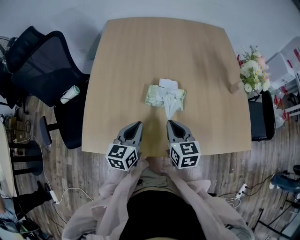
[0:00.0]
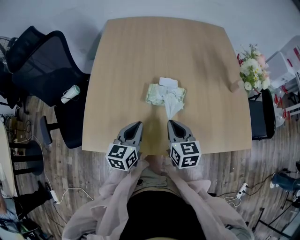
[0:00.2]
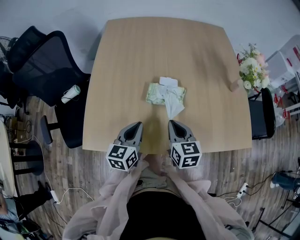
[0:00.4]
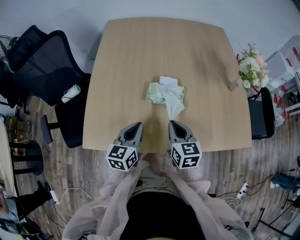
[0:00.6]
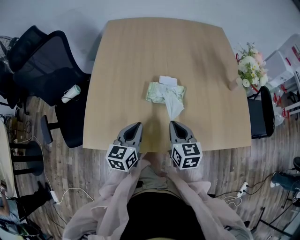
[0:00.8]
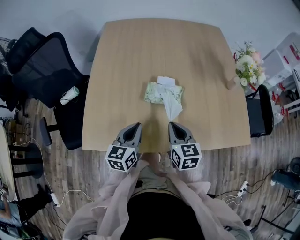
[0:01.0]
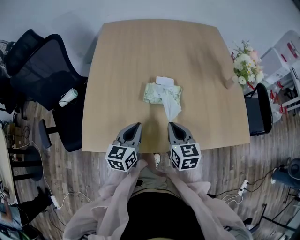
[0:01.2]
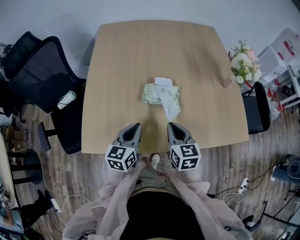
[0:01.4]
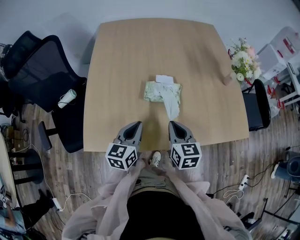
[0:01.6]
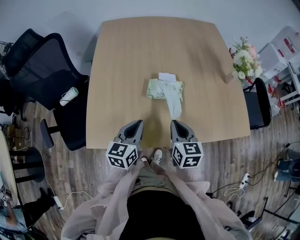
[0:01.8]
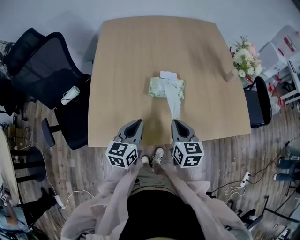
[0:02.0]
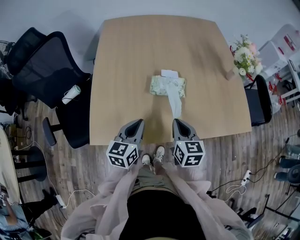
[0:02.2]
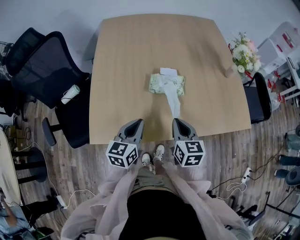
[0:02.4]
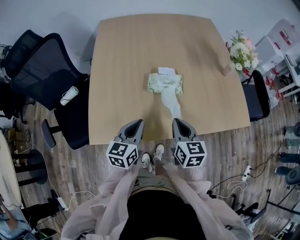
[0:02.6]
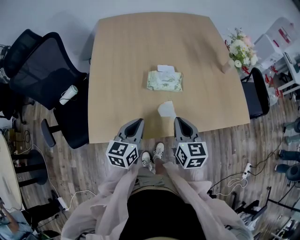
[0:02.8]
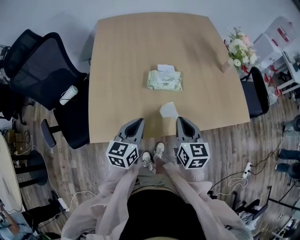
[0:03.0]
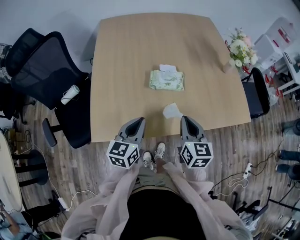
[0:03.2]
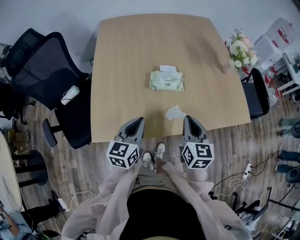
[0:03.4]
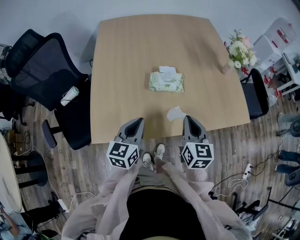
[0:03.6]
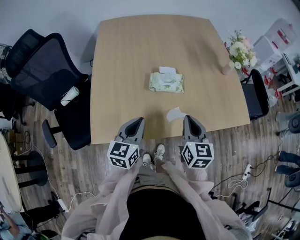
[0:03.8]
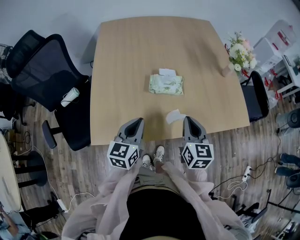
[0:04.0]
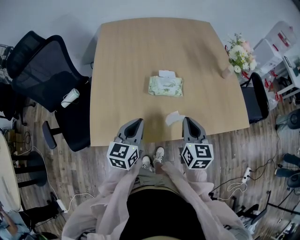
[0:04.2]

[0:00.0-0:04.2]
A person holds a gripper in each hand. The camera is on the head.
0:00.0 to 0:01.4: The grippers make only small movements.
0:01.4 to 0:02.8: The grippers both shift backward by approximately 5 cm.
0:02.8 to 0:04.2: There are only small adjustments of the grippers.

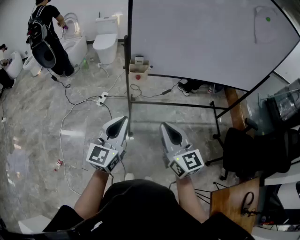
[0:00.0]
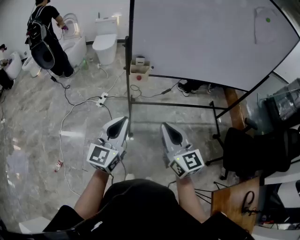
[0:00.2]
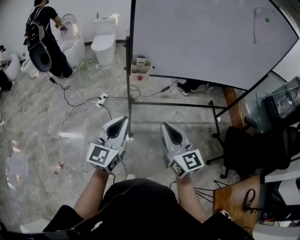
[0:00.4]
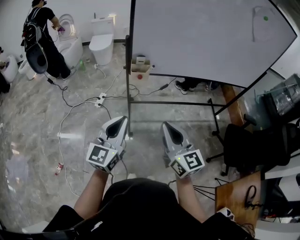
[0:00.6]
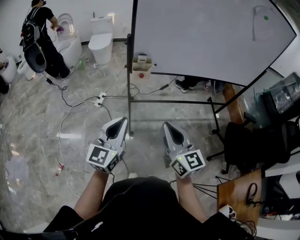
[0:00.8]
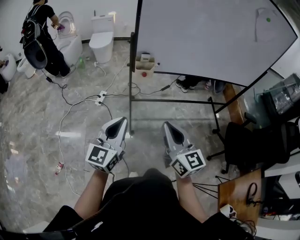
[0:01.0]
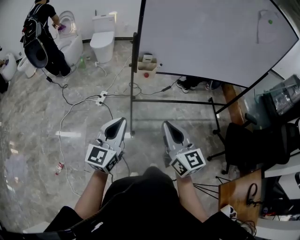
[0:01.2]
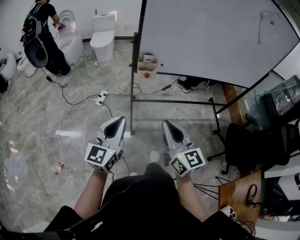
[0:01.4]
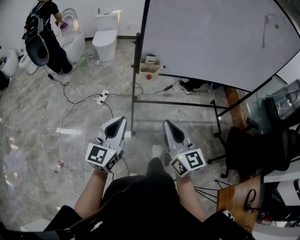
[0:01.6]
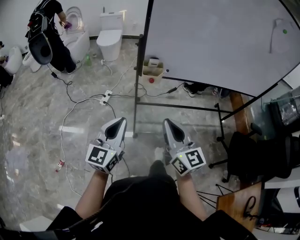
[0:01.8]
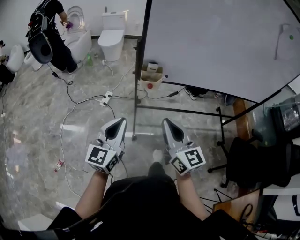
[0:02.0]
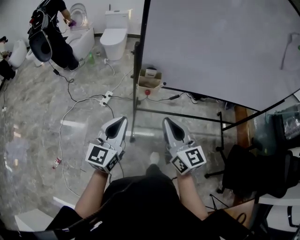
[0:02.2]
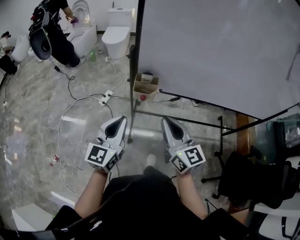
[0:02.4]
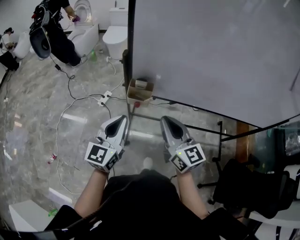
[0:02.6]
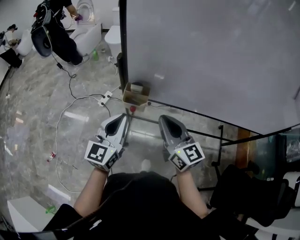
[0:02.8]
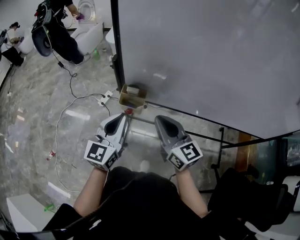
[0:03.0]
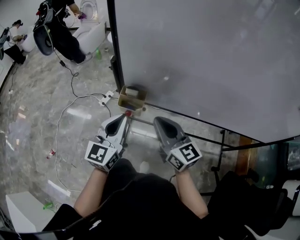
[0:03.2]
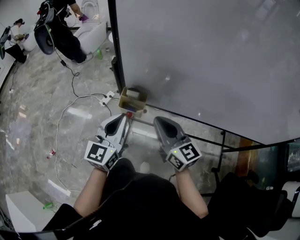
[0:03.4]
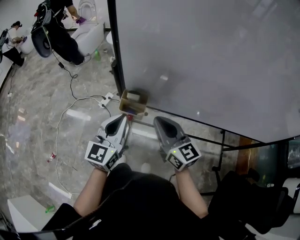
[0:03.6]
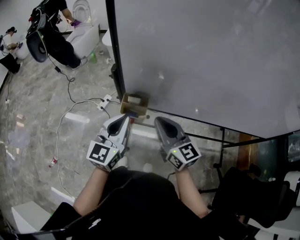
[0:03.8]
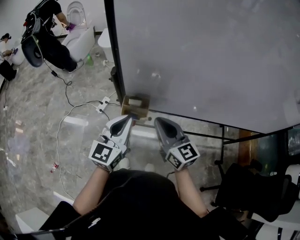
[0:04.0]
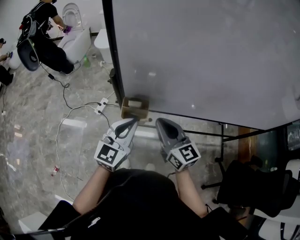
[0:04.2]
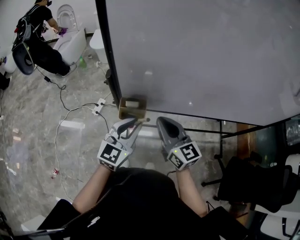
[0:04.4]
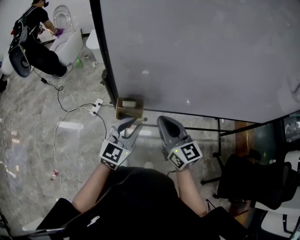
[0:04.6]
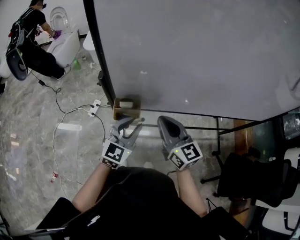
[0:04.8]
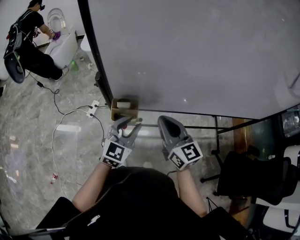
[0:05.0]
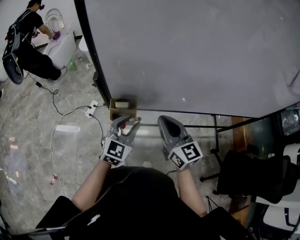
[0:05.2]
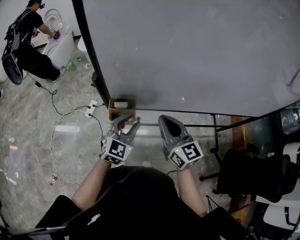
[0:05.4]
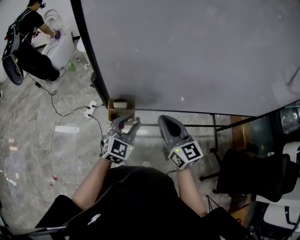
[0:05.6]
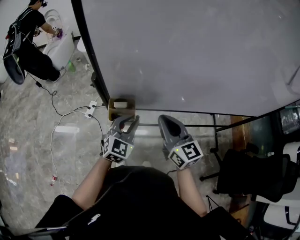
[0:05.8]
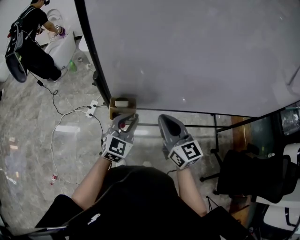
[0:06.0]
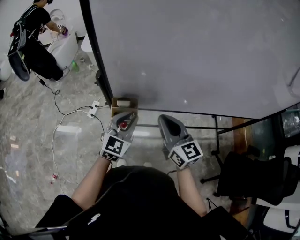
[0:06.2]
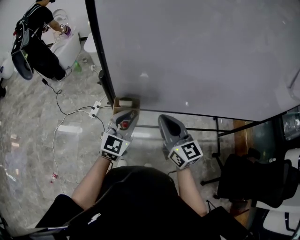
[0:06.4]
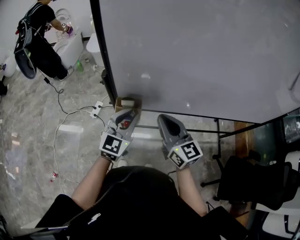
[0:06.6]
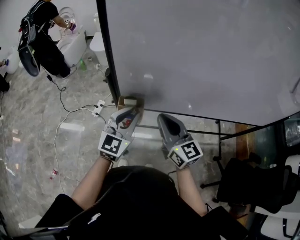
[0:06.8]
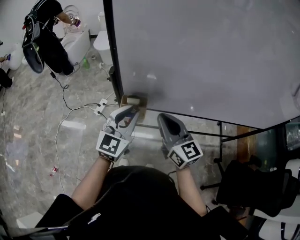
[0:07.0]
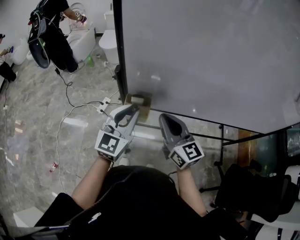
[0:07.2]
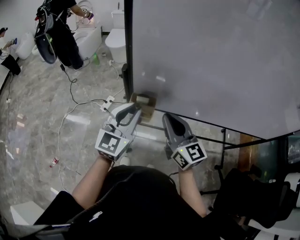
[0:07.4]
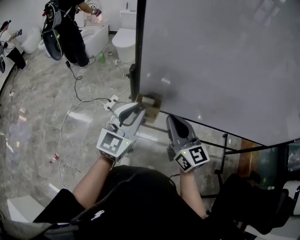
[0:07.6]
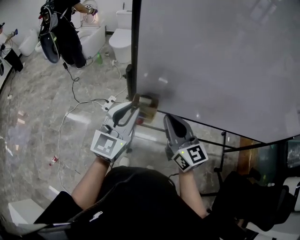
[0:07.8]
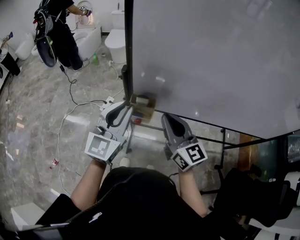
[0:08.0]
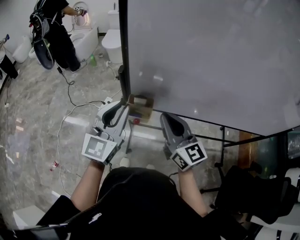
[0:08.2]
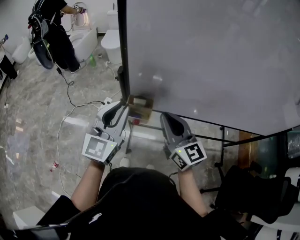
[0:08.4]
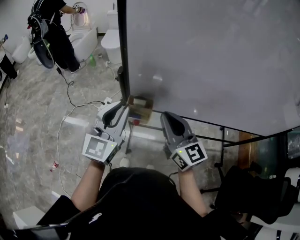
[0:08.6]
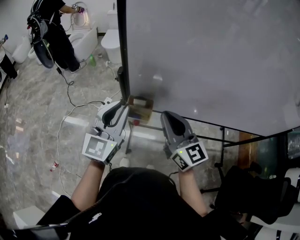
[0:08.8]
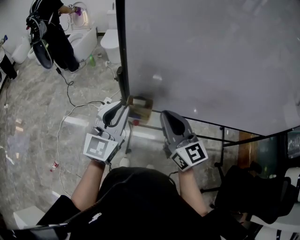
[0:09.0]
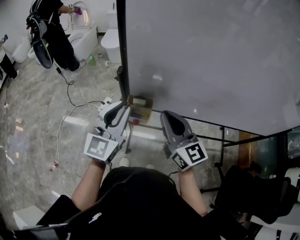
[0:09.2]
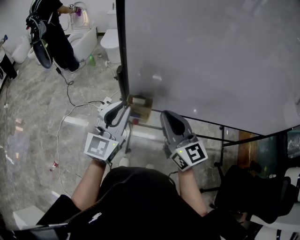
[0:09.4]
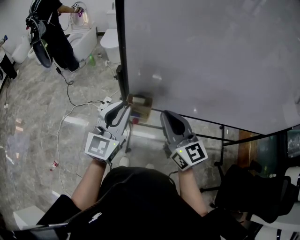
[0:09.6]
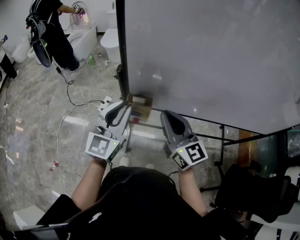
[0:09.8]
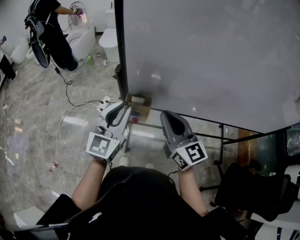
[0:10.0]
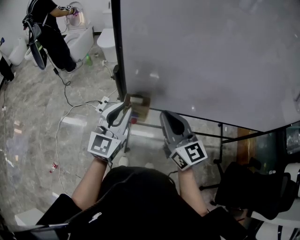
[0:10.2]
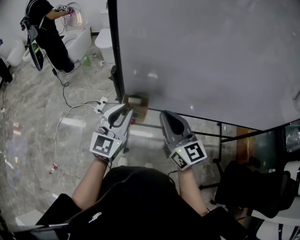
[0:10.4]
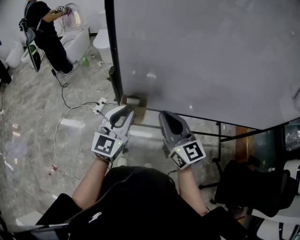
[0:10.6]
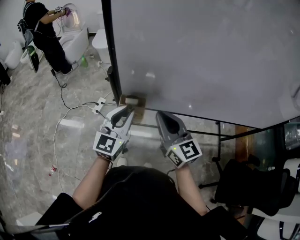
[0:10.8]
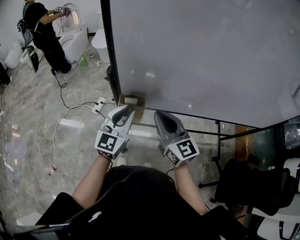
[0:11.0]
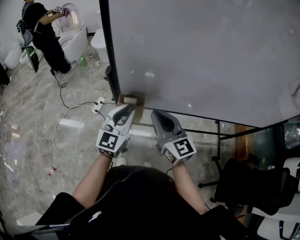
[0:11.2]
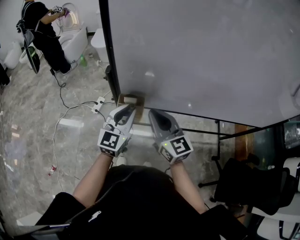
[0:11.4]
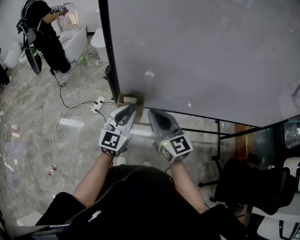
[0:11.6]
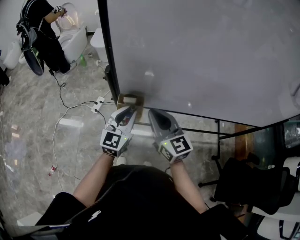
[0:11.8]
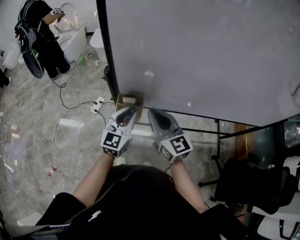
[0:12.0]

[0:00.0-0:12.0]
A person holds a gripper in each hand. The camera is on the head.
0:00.0 to 0:01.6: The two grippers go roughly 10 cm to the left.
0:01.6 to 0:03.0: The two grippers go roughly 30 cm forward and to the right. The right gripper swivels about 20 degrees.
0:03.0 to 0:04.4: The right gripper shifts by some 5 cm, while the left gripper changes place by approximately 5 cm, and swivels some 20 degrees.
0:04.4 to 0:06.0: The left gripper ends up some 5 cm from where it was.
0:06.0 to 0:07.6: The left gripper travels upward and to the left by approximately 15 cm, and rotates about 20 degrees. The right gripper travels to the left by some 5 cm.
0:07.6 to 0:10.4: There are only small adjustments of the grippers.
0:10.4 to 0:12.0: The left gripper heads downward, covering roughly 10 cm. The right gripper shifts by some 5 cm.

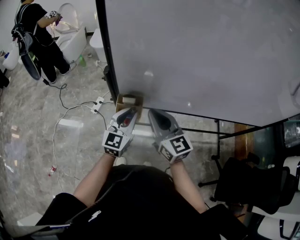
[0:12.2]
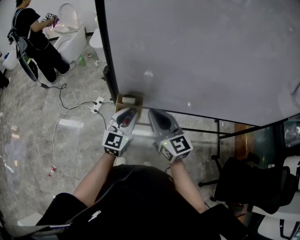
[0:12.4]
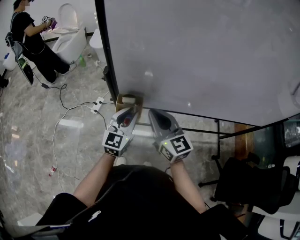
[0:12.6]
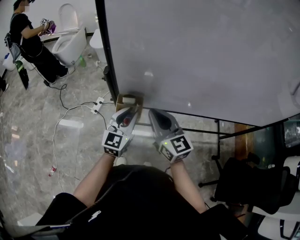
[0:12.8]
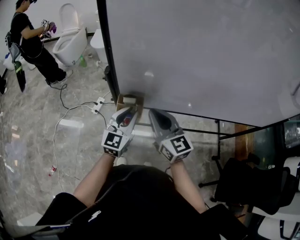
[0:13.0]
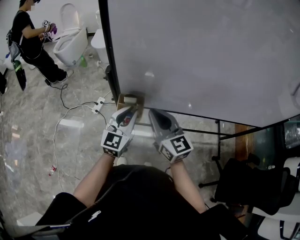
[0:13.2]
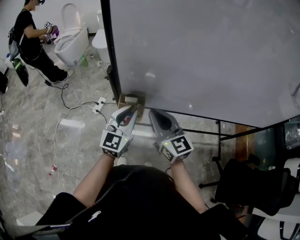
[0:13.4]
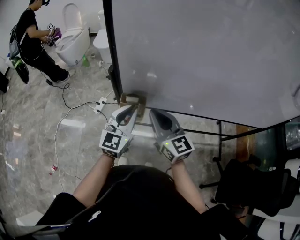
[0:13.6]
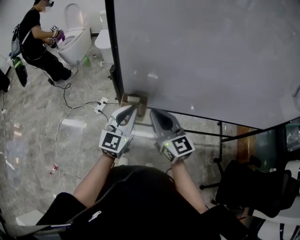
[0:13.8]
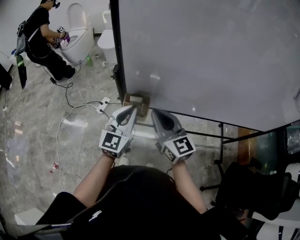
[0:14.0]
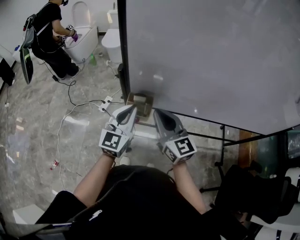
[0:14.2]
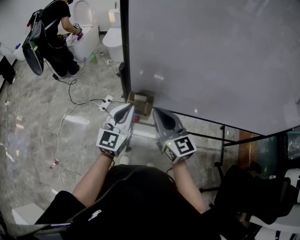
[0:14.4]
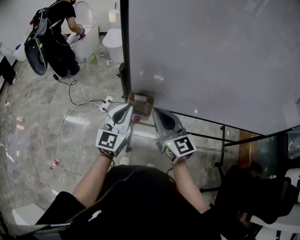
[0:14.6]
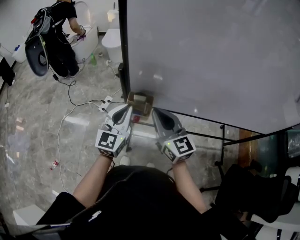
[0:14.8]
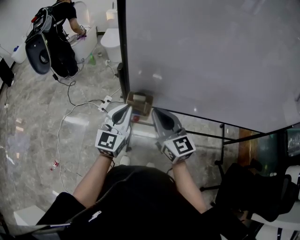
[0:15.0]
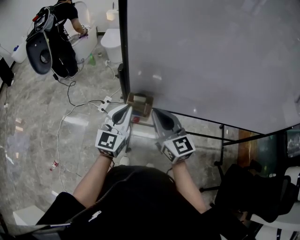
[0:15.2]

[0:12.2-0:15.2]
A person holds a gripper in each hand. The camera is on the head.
0:12.2 to 0:13.8: The left gripper goes approximately 5 cm upward.
0:13.8 to 0:15.2: The grippers make only small movements.

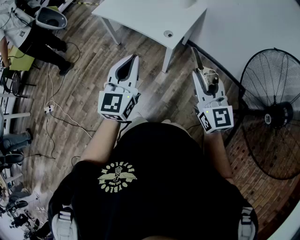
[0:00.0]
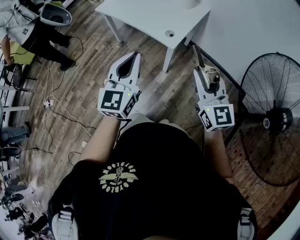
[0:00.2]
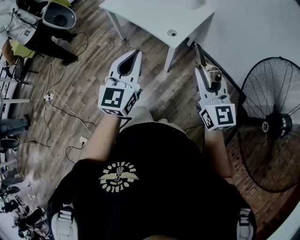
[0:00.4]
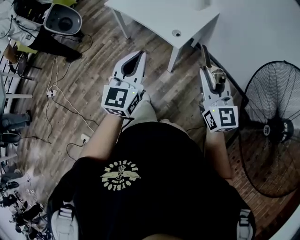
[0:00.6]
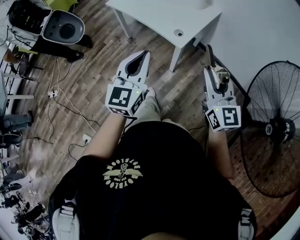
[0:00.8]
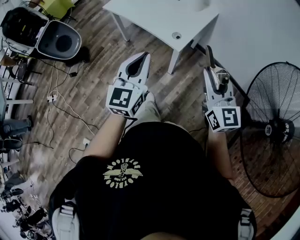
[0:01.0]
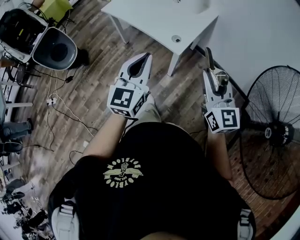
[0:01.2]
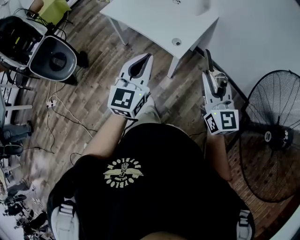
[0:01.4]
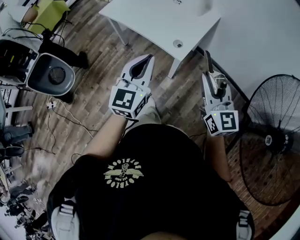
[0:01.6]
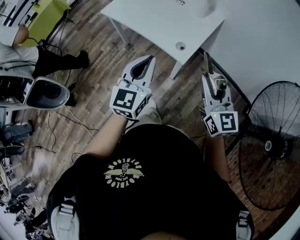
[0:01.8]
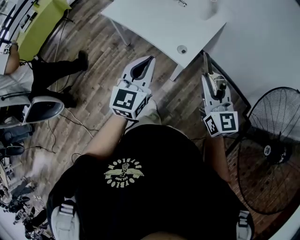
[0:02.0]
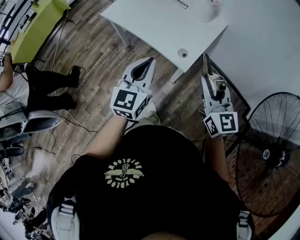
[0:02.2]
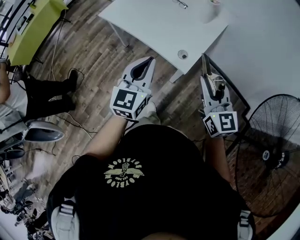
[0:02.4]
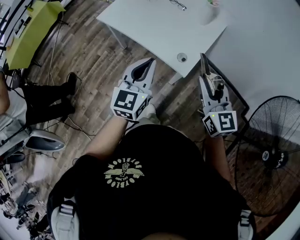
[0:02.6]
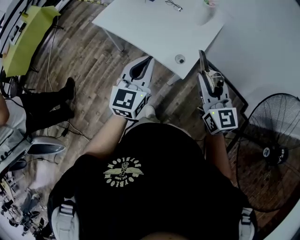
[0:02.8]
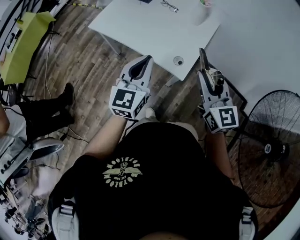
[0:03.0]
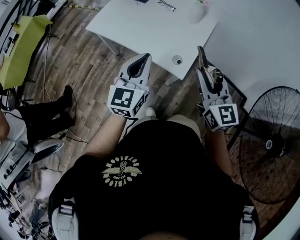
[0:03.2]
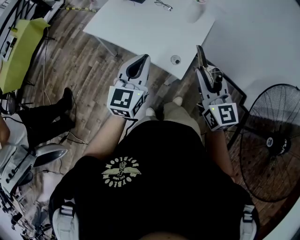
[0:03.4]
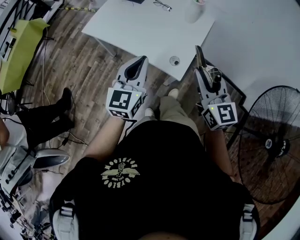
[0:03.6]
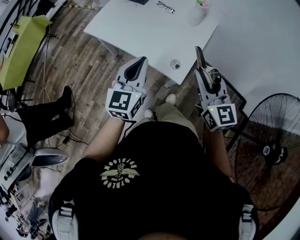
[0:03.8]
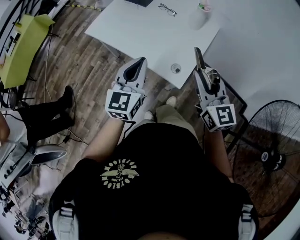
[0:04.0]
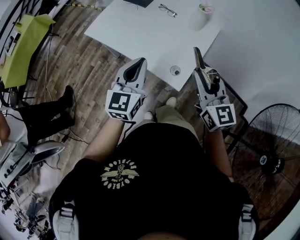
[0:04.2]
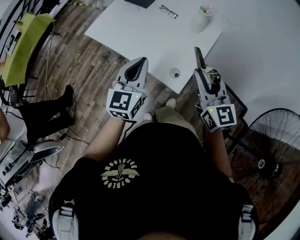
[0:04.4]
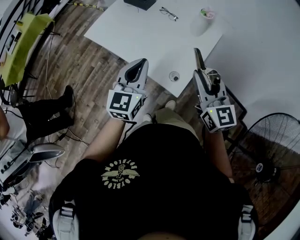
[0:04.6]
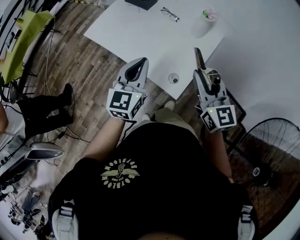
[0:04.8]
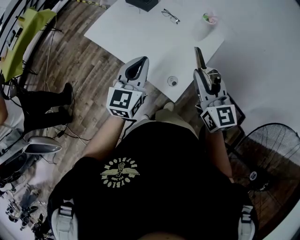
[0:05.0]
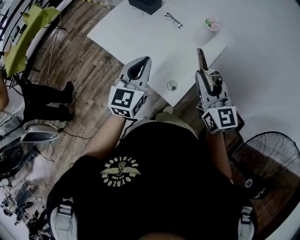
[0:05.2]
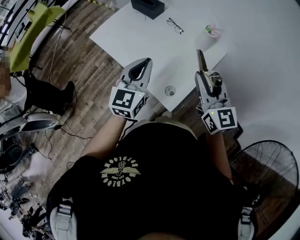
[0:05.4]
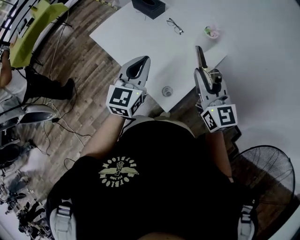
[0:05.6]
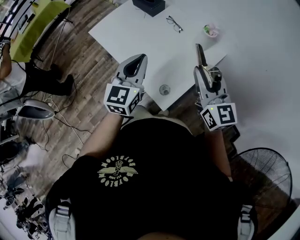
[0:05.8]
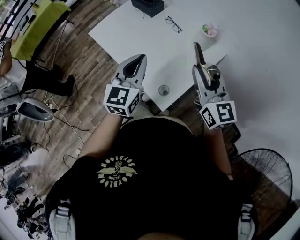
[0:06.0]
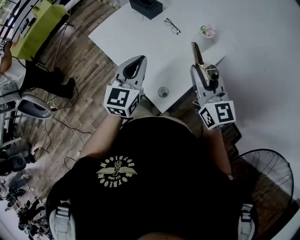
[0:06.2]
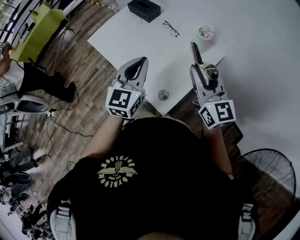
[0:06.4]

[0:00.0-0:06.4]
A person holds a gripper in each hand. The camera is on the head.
0:00.0 to 0:01.6: Both grippers move forward, approximately 10 cm.
0:01.6 to 0:03.2: The left gripper moves forward, some 15 cm. Meanwhile the right gripper shifts approximately 15 cm forward and to the left.
0:03.2 to 0:04.8: Both grippers travel together forward, some 15 cm.
0:04.8 to 0:06.4: The left gripper is displaced to the right and forward by approximately 10 cm. Meanwhile the right gripper is displaced forward and to the right by about 10 cm.
